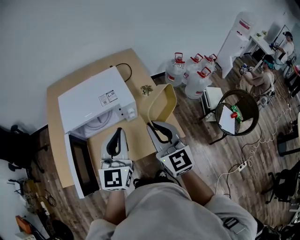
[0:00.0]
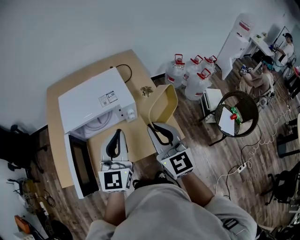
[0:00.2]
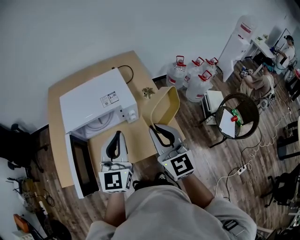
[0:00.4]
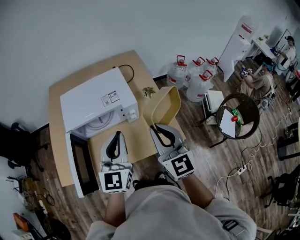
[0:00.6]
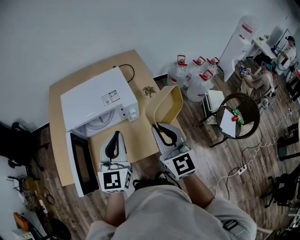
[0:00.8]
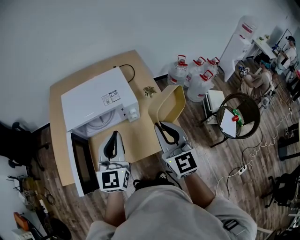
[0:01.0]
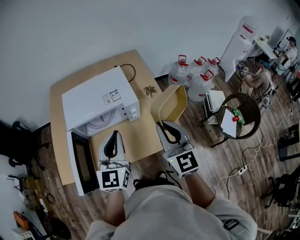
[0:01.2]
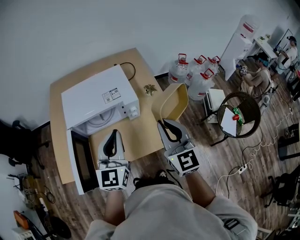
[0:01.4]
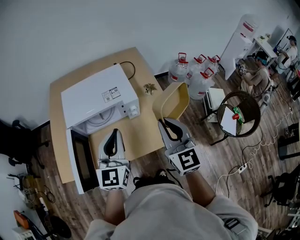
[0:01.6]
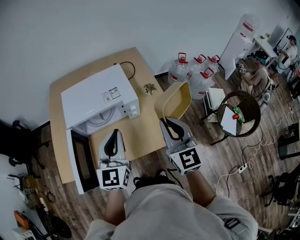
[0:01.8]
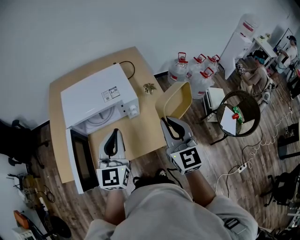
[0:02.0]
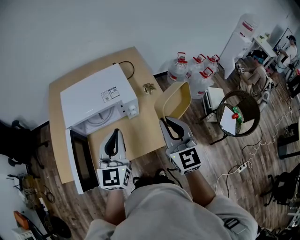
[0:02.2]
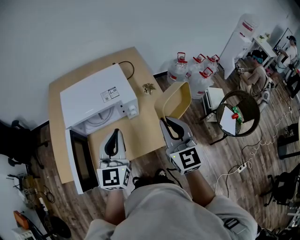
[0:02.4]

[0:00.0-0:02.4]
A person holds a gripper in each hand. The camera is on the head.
0.0 to 2.4 s: There are only small adjustments of the grippers.

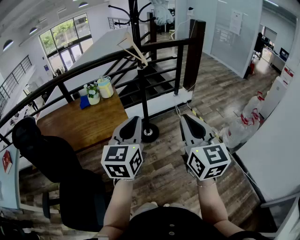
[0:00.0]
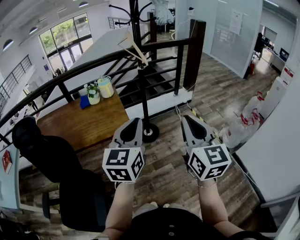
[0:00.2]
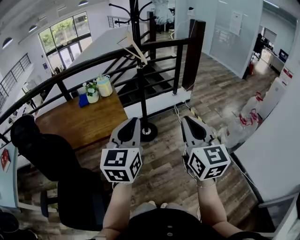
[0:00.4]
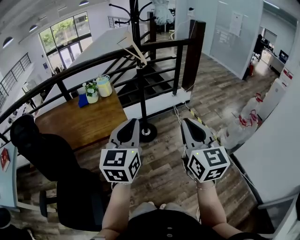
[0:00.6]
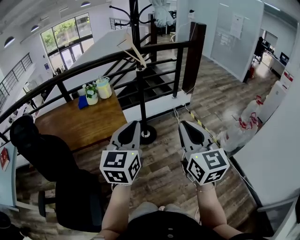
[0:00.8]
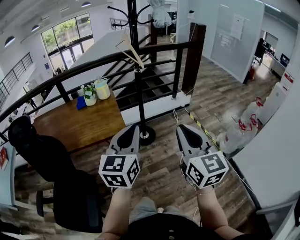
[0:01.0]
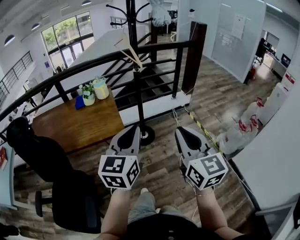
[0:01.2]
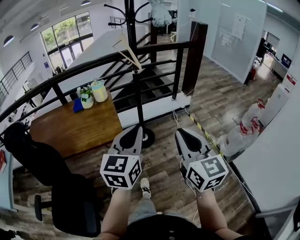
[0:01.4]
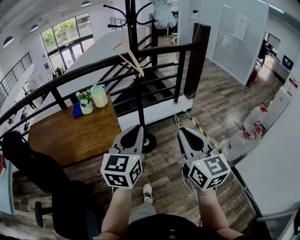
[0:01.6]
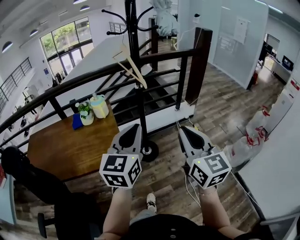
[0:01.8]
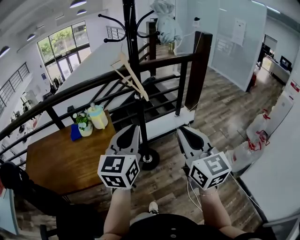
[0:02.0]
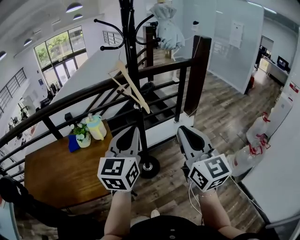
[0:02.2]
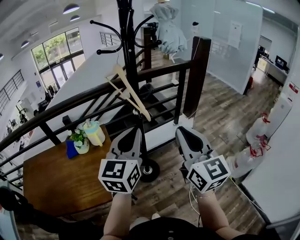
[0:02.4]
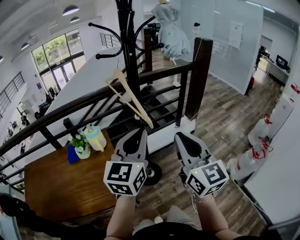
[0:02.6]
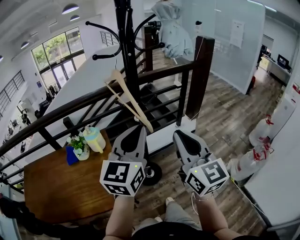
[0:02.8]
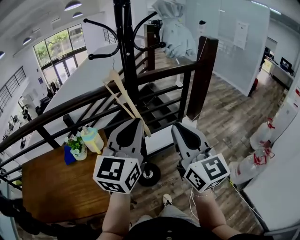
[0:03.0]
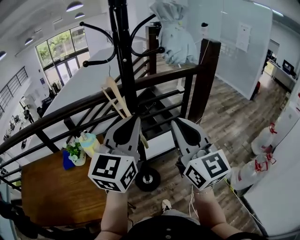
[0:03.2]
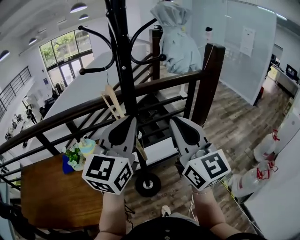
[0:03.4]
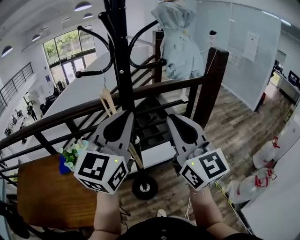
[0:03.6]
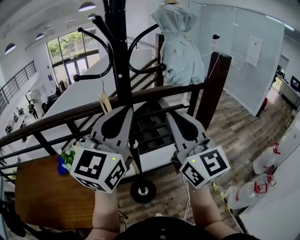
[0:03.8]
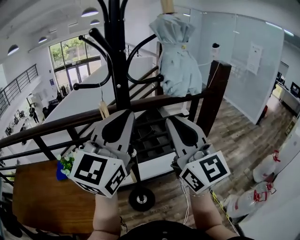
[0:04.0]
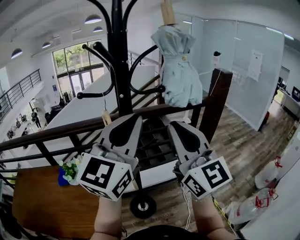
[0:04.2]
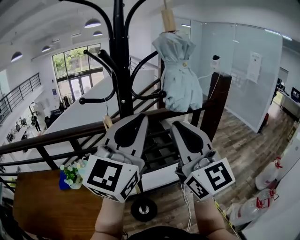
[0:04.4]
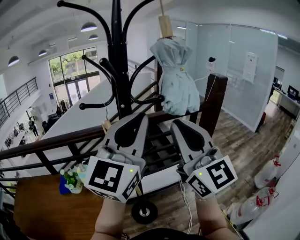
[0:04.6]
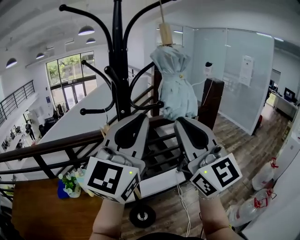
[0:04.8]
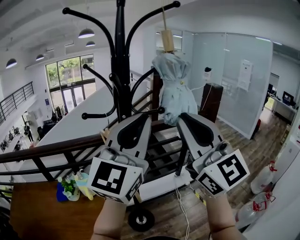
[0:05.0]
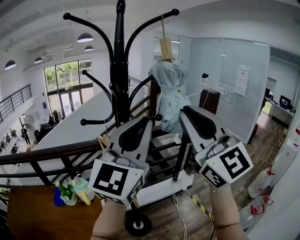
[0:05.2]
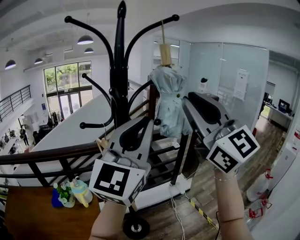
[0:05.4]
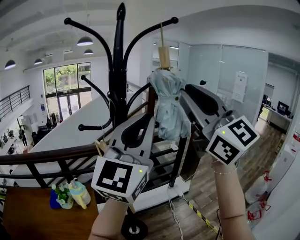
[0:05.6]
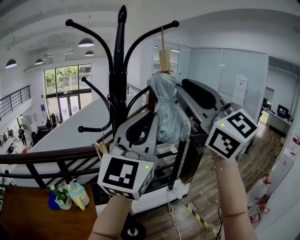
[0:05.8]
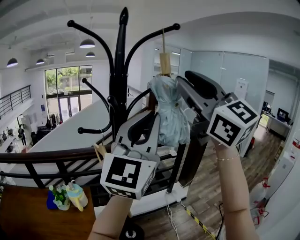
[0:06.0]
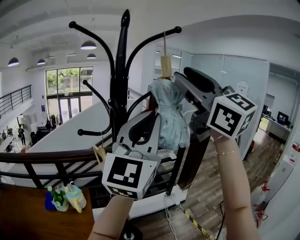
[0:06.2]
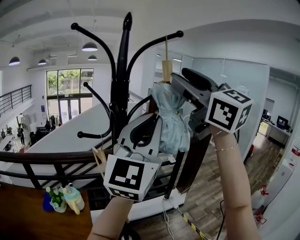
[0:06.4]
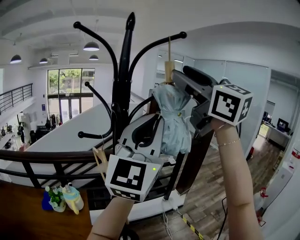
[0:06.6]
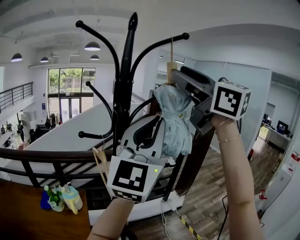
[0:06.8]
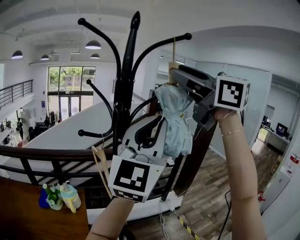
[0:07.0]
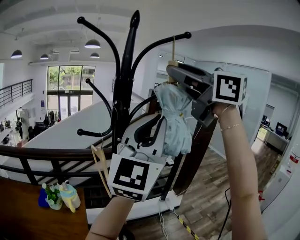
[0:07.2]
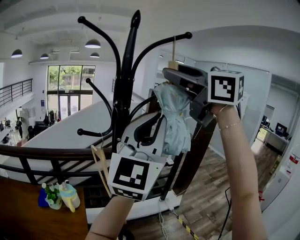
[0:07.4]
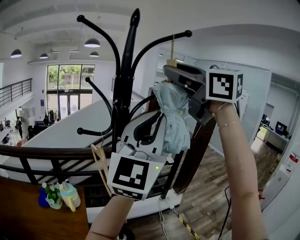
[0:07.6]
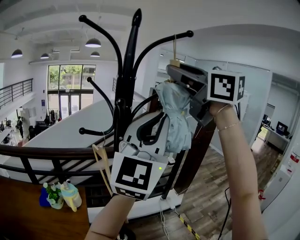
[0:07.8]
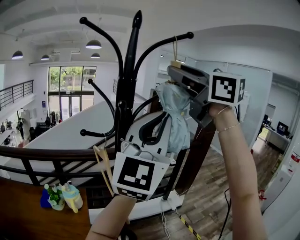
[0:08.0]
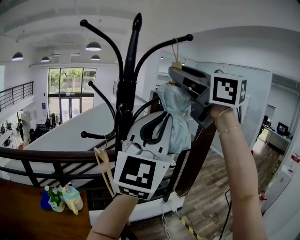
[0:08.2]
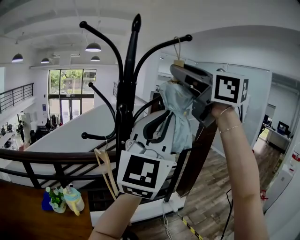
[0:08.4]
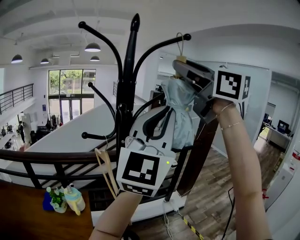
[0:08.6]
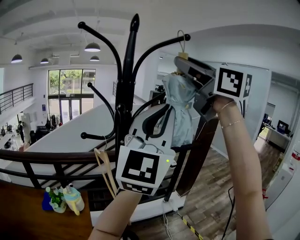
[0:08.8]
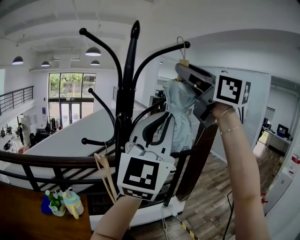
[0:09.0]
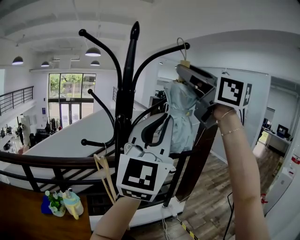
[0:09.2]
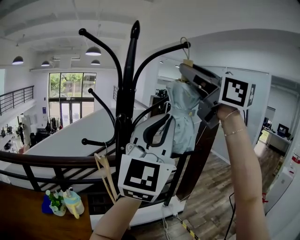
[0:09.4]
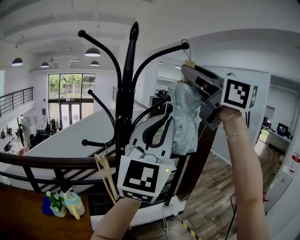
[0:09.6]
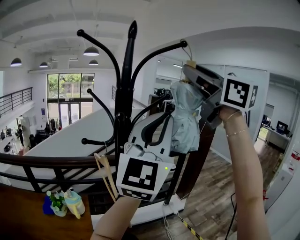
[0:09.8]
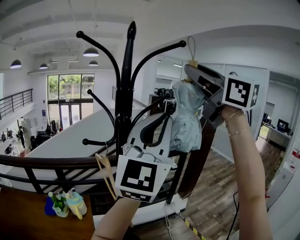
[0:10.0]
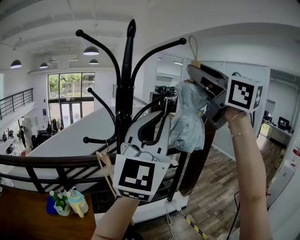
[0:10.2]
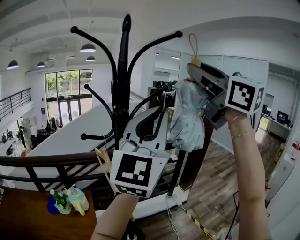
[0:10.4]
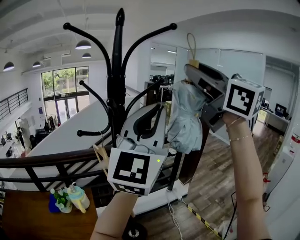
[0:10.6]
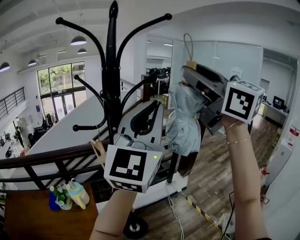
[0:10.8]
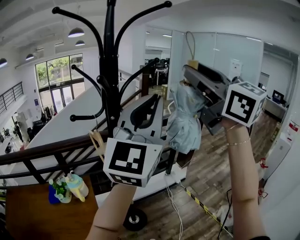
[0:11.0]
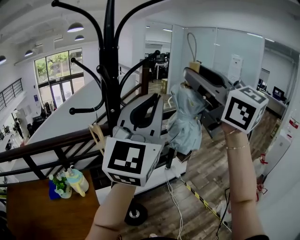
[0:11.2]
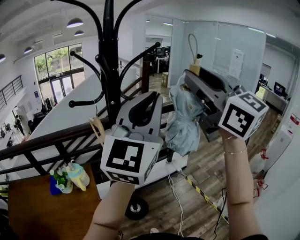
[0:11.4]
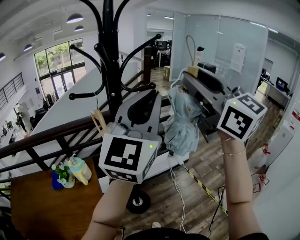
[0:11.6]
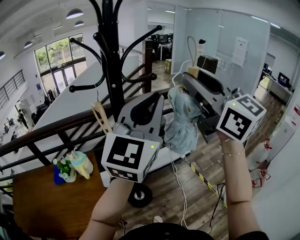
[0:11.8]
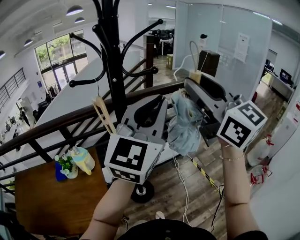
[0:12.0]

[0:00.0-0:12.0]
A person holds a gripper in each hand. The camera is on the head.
0.0 to 1.6 s: Both grippers travel together forward, roughly 10 cm.
1.6 to 3.0 s: Both grippers move forward, roughly 30 cm.
3.0 to 4.4 s: The two grippers go some 15 cm upward and forward.
4.4 to 6.0 s: The left gripper moves upward, about 10 cm, while the right gripper is displaced upward by about 20 cm, and opens its fingers.
6.0 to 7.6 s: The right gripper shifts about 5 cm forward, and changes its angle by some 20 degrees.
7.6 to 9.0 s: The grippers move only a little.
9.0 to 10.4 s: The right gripper changes place by roughly 5 cm.
10.4 to 12.0 s: The left gripper heads downward, covering approximately 15 cm, and rotates about 20 degrees; the right gripper moves downward, about 20 cm.

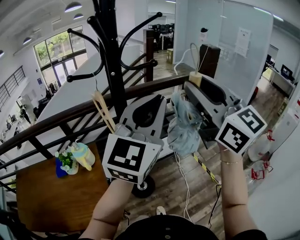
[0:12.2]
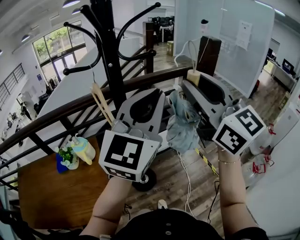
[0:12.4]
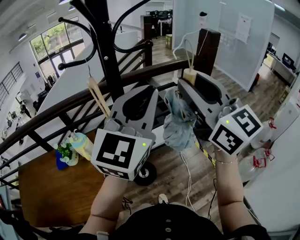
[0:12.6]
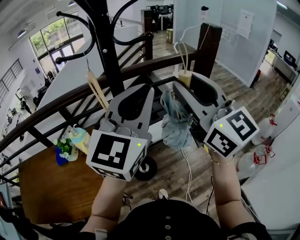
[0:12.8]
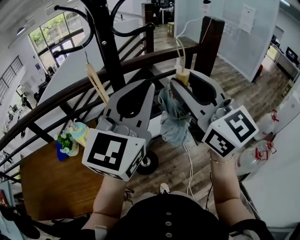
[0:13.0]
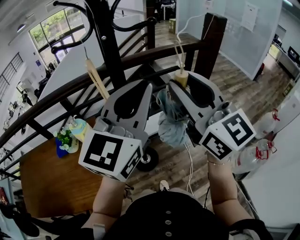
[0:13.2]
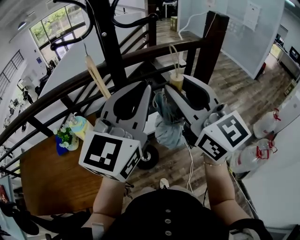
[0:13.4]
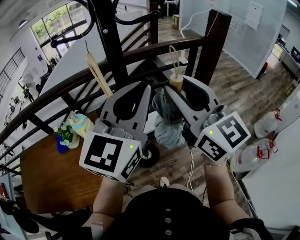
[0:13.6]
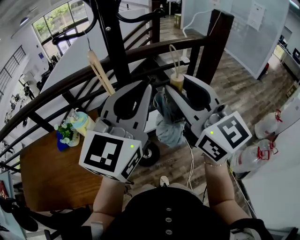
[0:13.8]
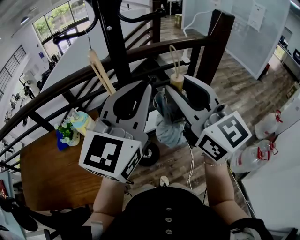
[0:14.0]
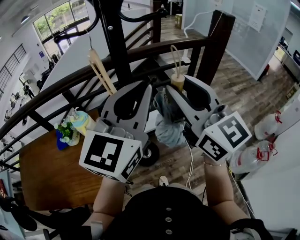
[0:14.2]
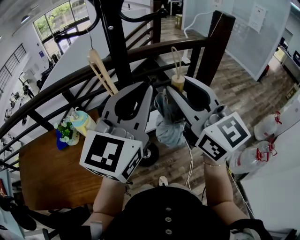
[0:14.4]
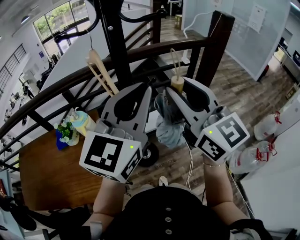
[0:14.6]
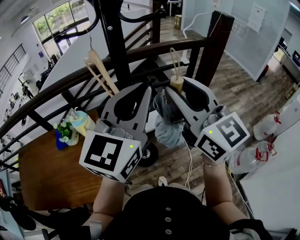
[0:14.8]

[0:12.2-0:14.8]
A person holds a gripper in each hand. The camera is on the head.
12.2 to 13.4 s: The right gripper travels downward and to the left by roughly 10 cm. Meanwhile the left gripper heads downward, covering some 5 cm.
13.4 to 14.8 s: The grippers make only small movements.

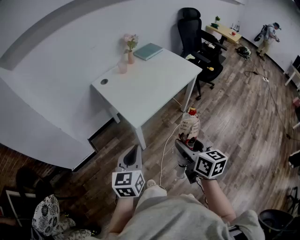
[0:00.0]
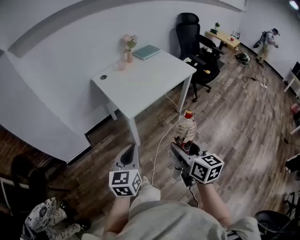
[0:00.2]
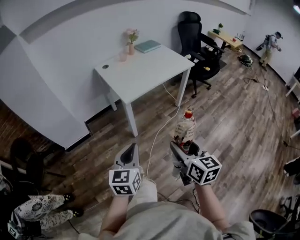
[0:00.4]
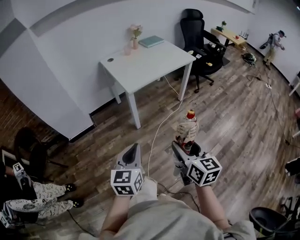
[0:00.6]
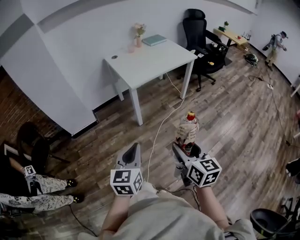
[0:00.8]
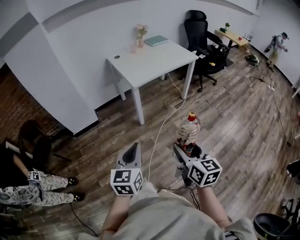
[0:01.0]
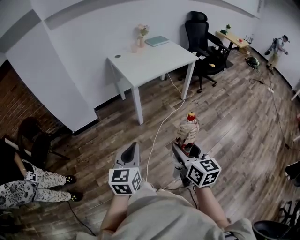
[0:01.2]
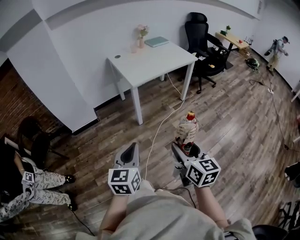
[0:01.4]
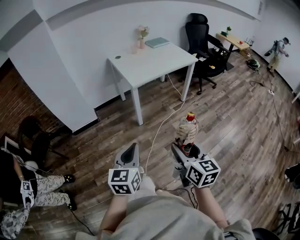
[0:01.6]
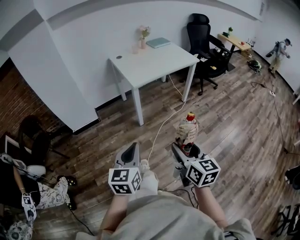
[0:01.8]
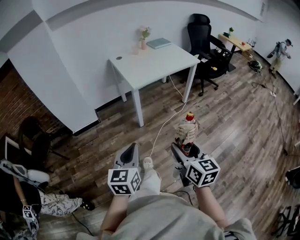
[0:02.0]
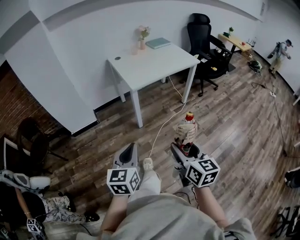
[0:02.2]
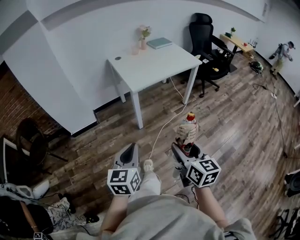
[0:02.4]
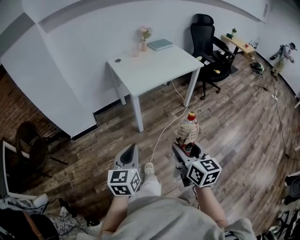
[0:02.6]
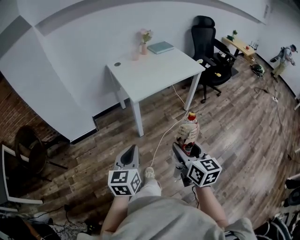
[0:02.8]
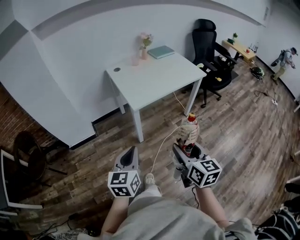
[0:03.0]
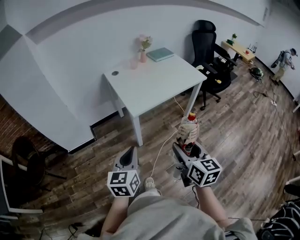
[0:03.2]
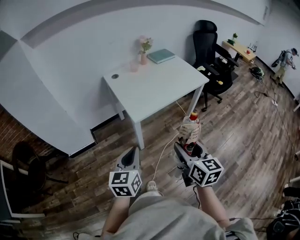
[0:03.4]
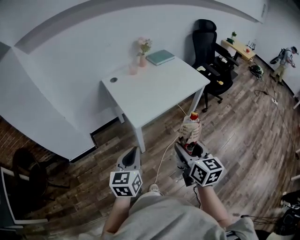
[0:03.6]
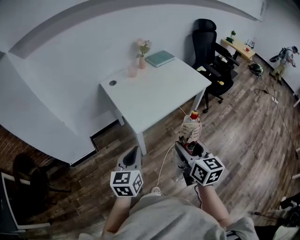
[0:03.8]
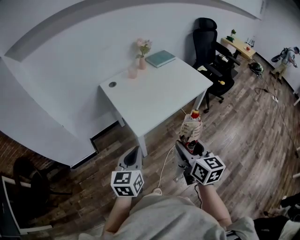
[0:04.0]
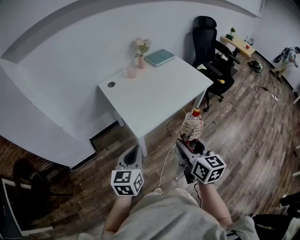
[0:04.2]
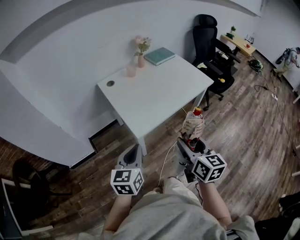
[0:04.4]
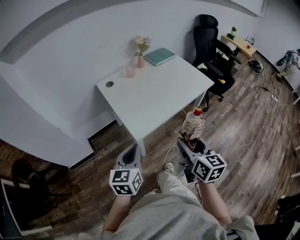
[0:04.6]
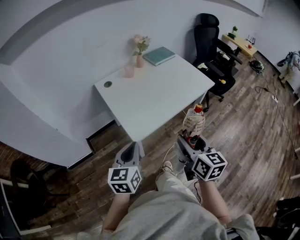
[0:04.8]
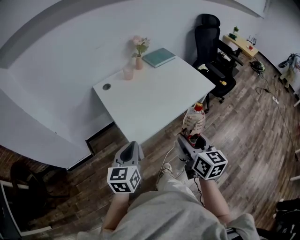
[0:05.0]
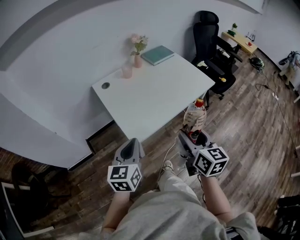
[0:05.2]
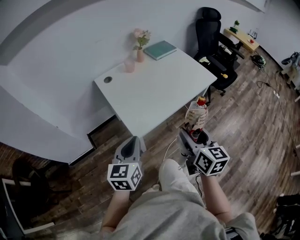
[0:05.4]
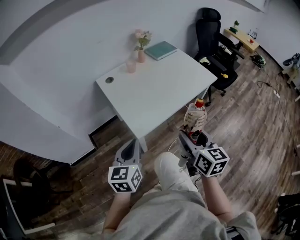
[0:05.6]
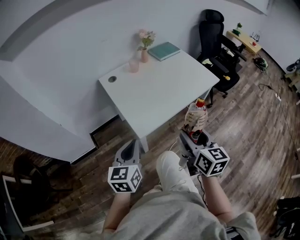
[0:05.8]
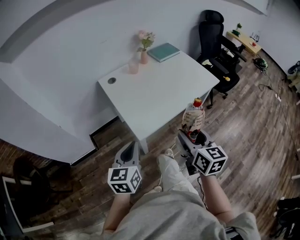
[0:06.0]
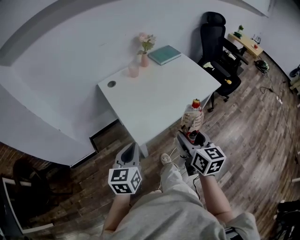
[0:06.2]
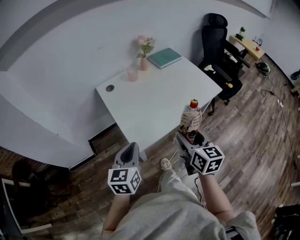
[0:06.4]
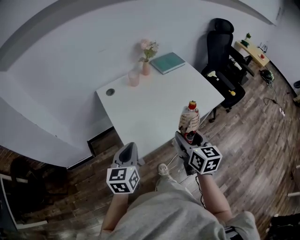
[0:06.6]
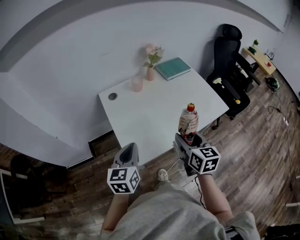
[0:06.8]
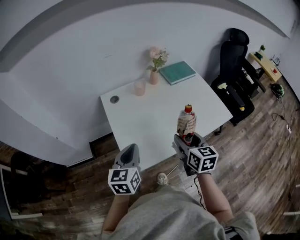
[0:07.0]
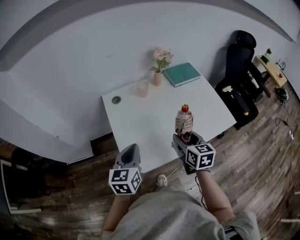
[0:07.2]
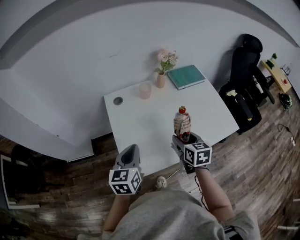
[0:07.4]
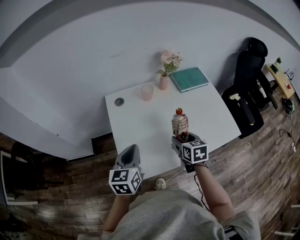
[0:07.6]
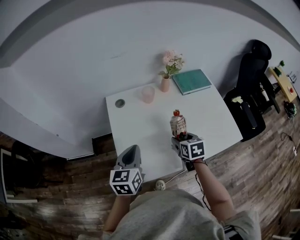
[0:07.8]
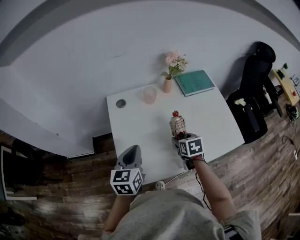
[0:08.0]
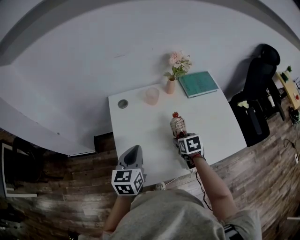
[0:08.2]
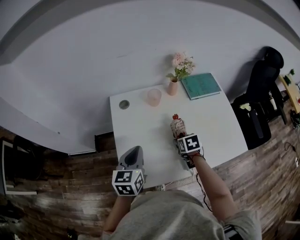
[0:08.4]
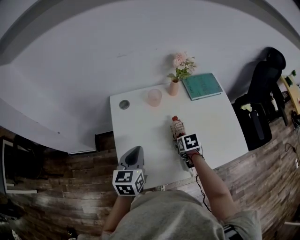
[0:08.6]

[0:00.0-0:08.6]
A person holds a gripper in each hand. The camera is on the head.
0.0 to 1.4 s: Both grippers travel together backward, roughly 40 cm.
1.4 to 2.8 s: Both grippers move forward, roughly 15 cm.
2.8 to 4.4 s: Both grippers travel together forward, approximately 30 cm.
4.4 to 5.8 s: The right gripper travels forward by some 5 cm.
5.8 to 7.2 s: The grippers both shift forward by roughly 25 cm. The right gripper changes its angle by approximately 20 degrees.
7.2 to 8.6 s: The left gripper is displaced forward by about 10 cm. Meanwhile the right gripper goes about 25 cm downward and forward, and tilts its fingers roughly 40 degrees downward.
